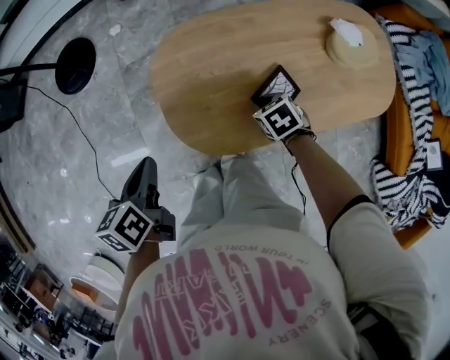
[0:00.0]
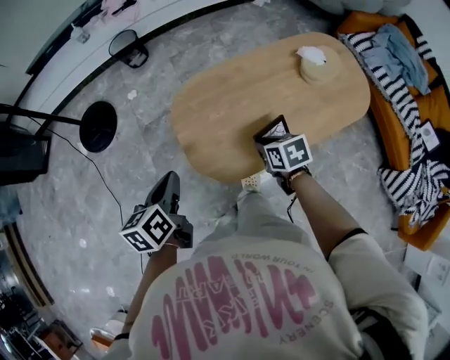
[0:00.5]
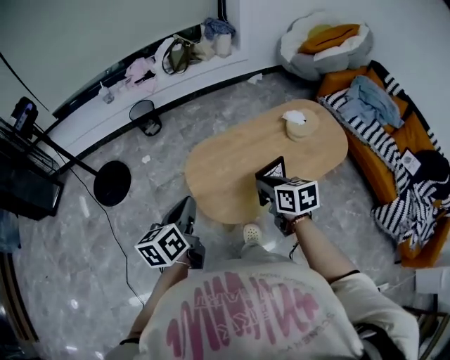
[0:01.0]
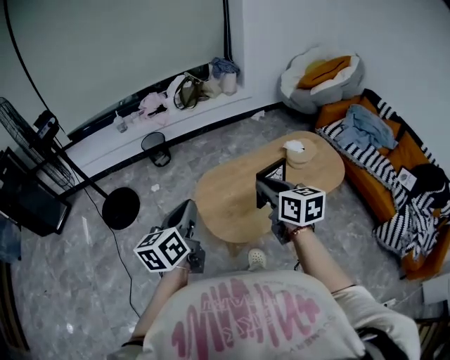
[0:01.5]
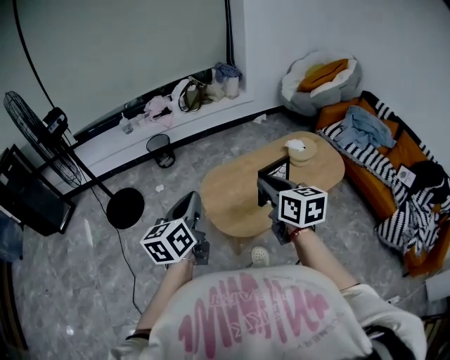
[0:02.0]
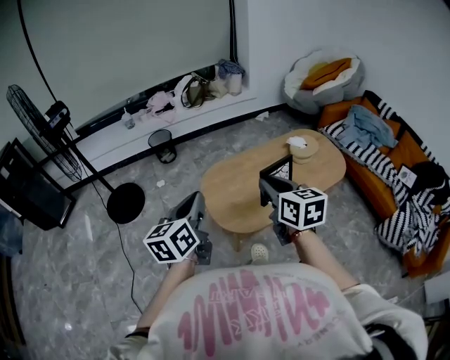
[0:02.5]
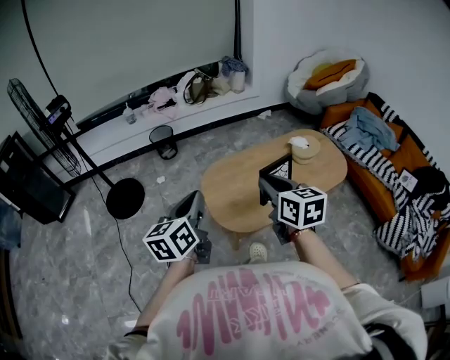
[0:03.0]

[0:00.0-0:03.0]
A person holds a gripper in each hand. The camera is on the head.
0:00.0 to 0:01.5: The right gripper shifts about 40 cm upward, and tips its fingers upward by approximately 50 degrees. The left gripper moves upward, roughly 25 cm, and tips its fingers upward by about 30 degrees.
0:01.5 to 0:03.0: The right gripper goes about 5 cm backward.

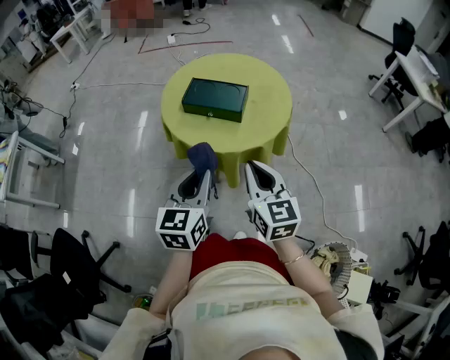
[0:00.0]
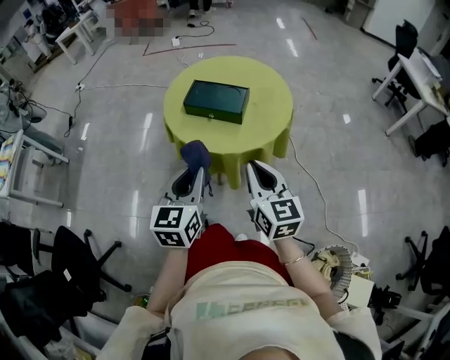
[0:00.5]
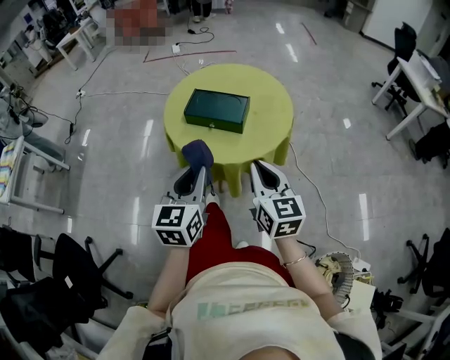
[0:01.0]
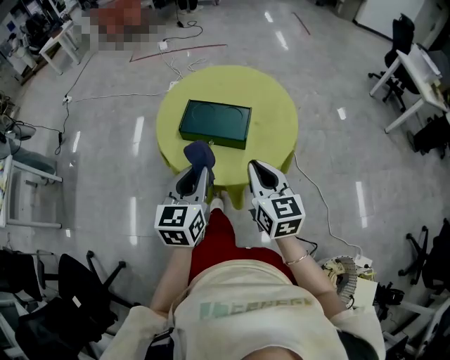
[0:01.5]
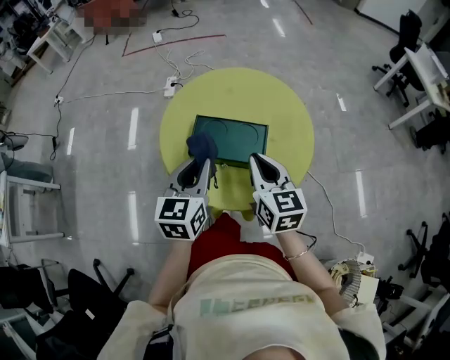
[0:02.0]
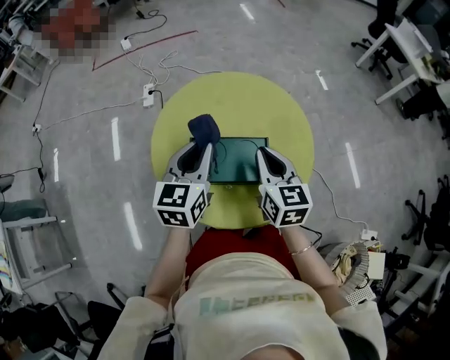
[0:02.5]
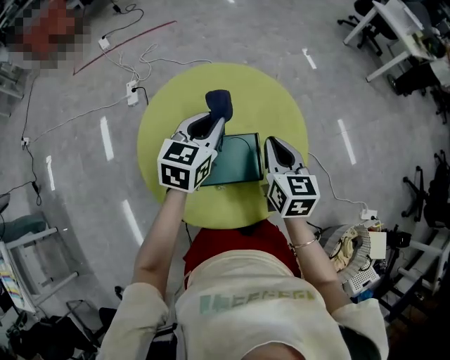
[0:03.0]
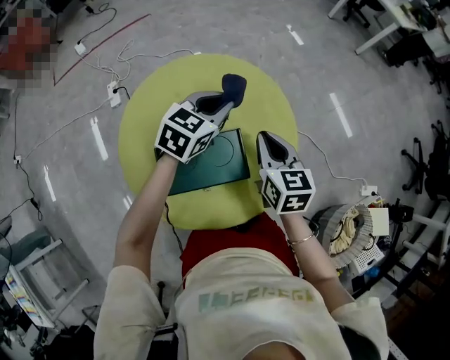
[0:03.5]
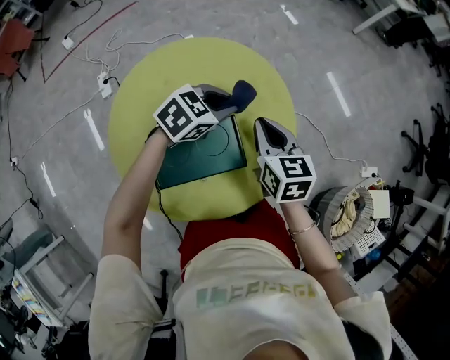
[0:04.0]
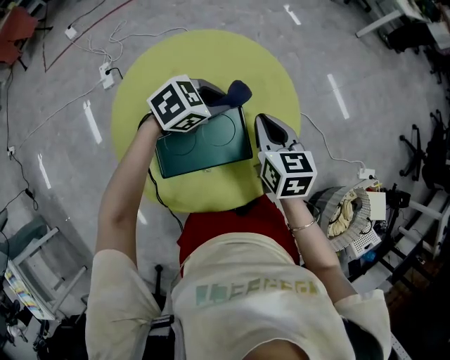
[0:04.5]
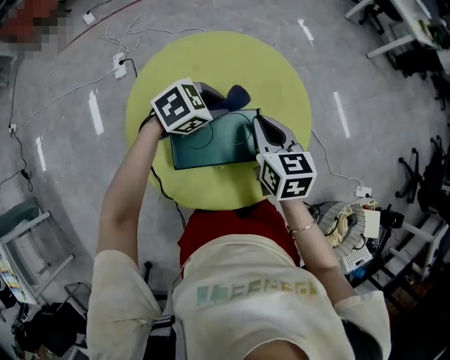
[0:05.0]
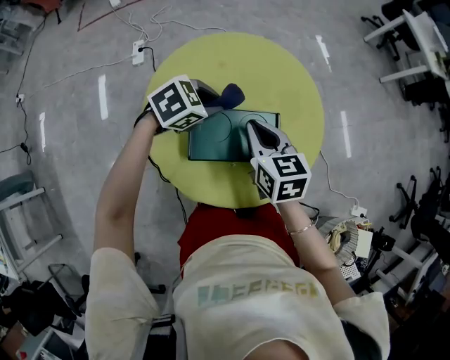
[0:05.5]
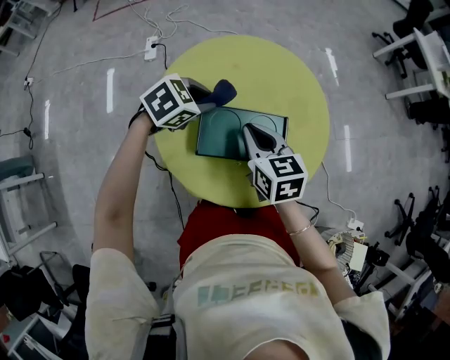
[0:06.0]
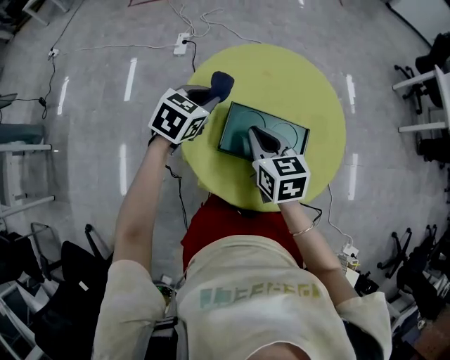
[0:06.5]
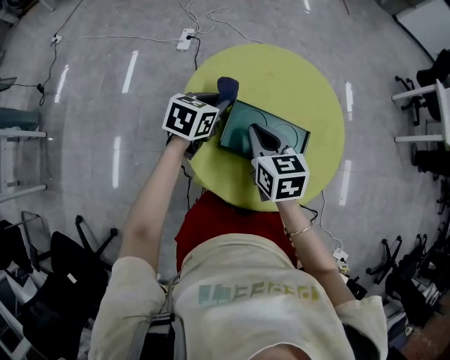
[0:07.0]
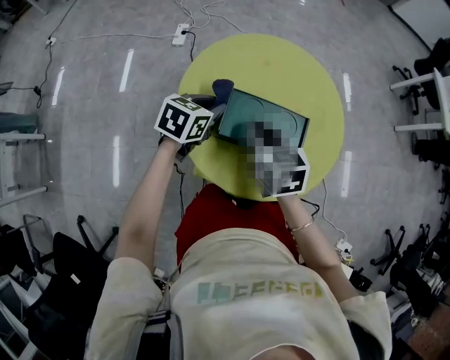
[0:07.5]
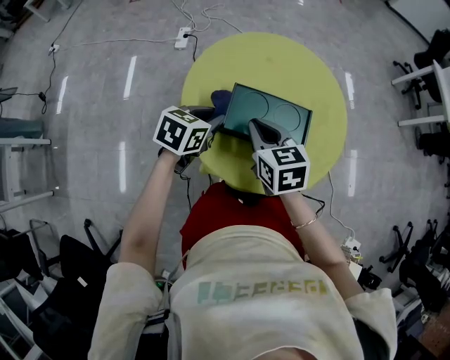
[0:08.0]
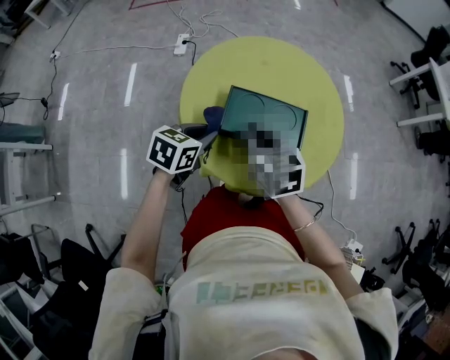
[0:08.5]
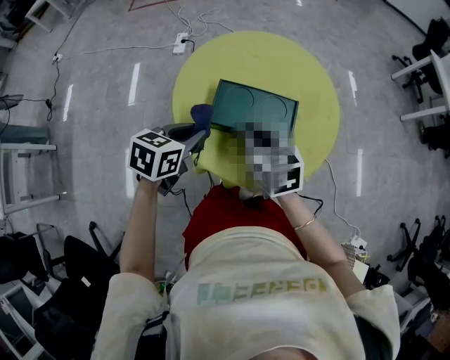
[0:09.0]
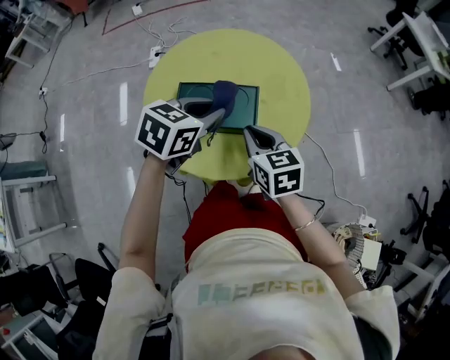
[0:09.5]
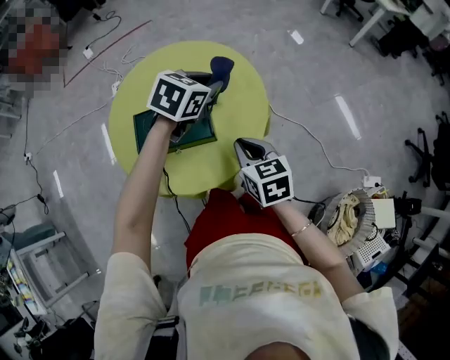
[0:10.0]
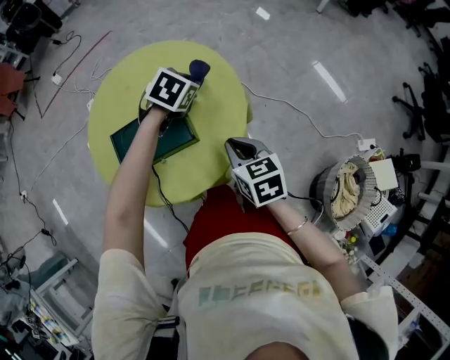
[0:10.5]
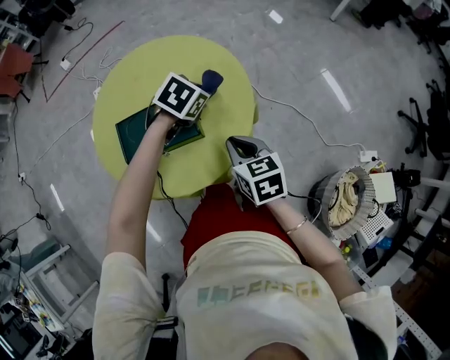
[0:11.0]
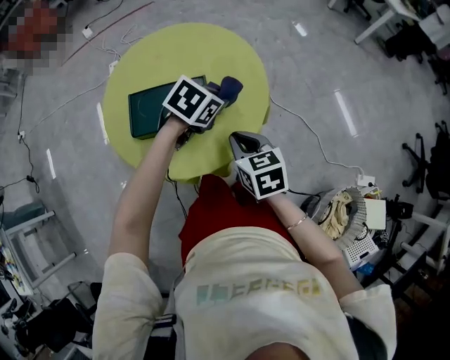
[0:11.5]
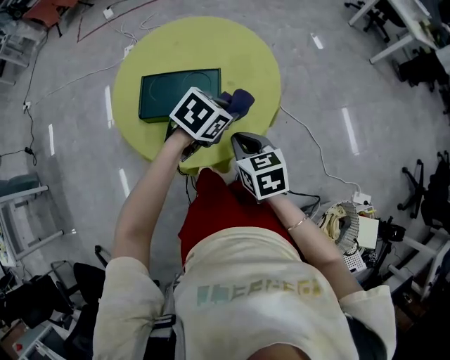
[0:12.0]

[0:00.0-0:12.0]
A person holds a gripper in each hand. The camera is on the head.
0:00.0 to 0:02.0: The grippers both shift forward by some 30 cm.
0:02.0 to 0:04.0: The left gripper shifts by some 30 cm, and changes its angle by about 80 degrees, while the right gripper moves some 20 cm, and swivels some 30 degrees.
0:04.0 to 0:06.0: The left gripper shifts by about 20 cm. Meanwhile the right gripper shifts by approximately 20 cm, and changes its angle by about 30 degrees.
0:06.0 to 0:08.0: The left gripper is displaced backward by about 10 cm, and turns by some 40 degrees. Meanwhile the right gripper goes about 10 cm backward and to the left.
0:08.0 to 0:10.0: The two grippers go roughly 25 cm to the right. The right gripper rotates approximately 20 degrees. The left gripper swivels approximately 30 degrees.
0:10.0 to 0:12.0: The left gripper heads backward and downward, covering some 15 cm.

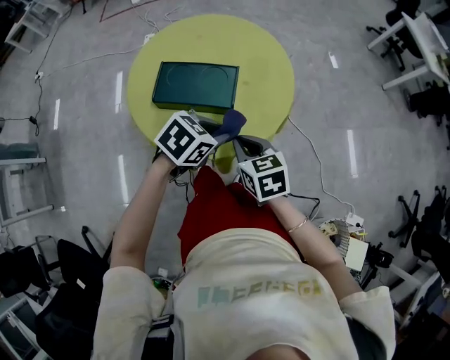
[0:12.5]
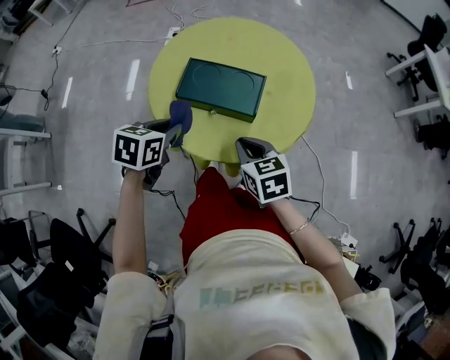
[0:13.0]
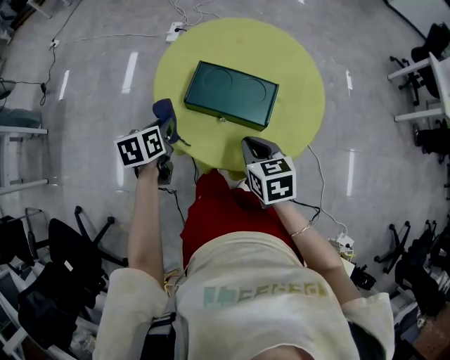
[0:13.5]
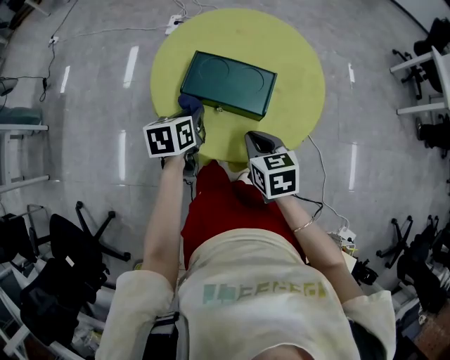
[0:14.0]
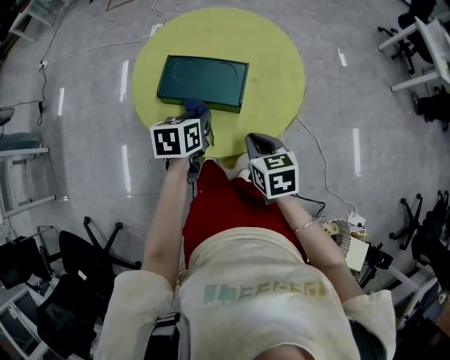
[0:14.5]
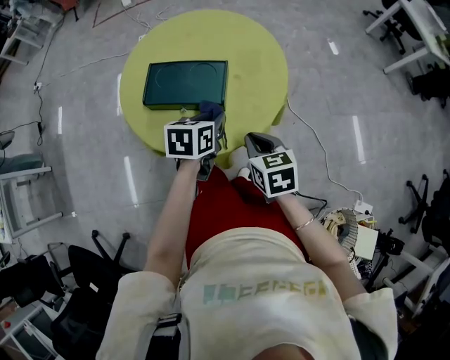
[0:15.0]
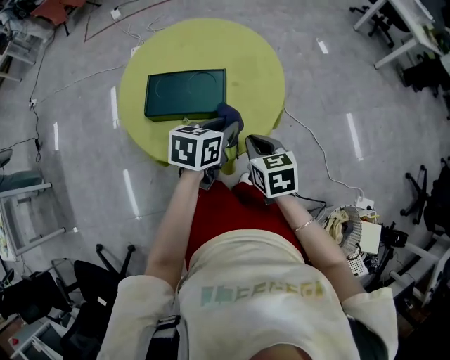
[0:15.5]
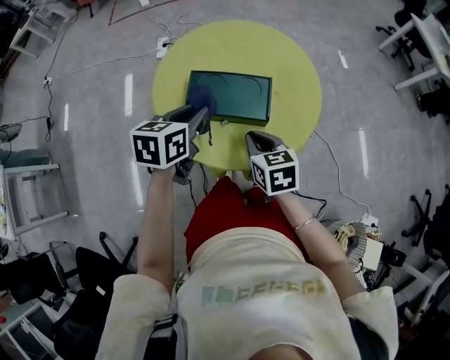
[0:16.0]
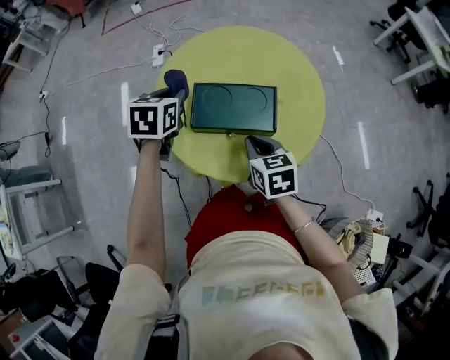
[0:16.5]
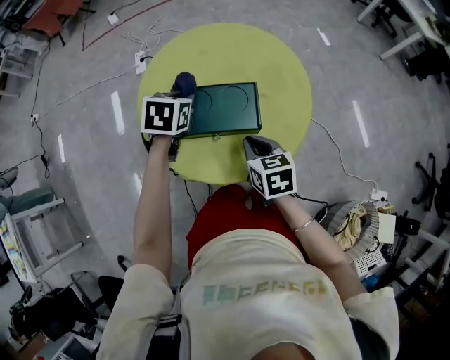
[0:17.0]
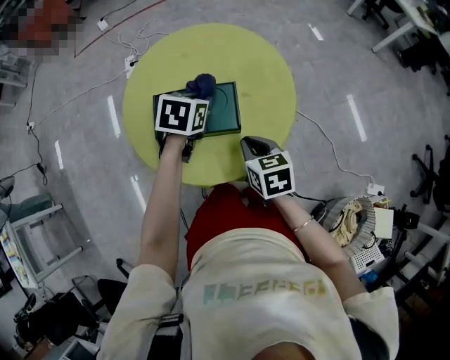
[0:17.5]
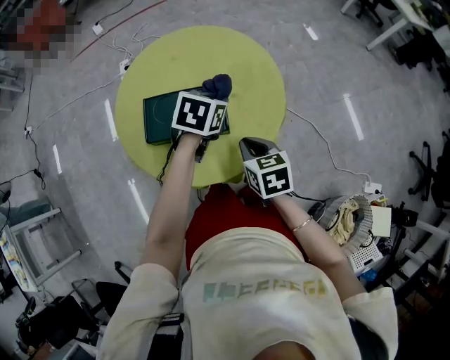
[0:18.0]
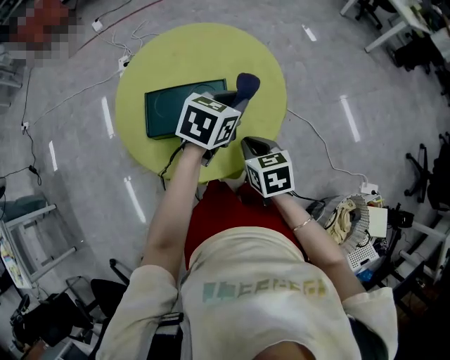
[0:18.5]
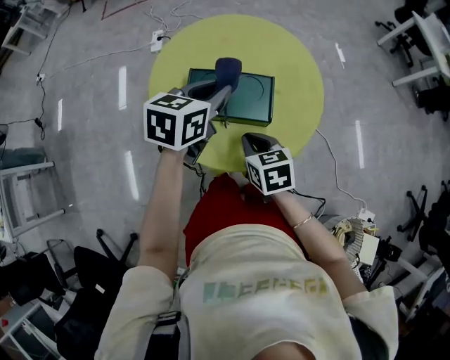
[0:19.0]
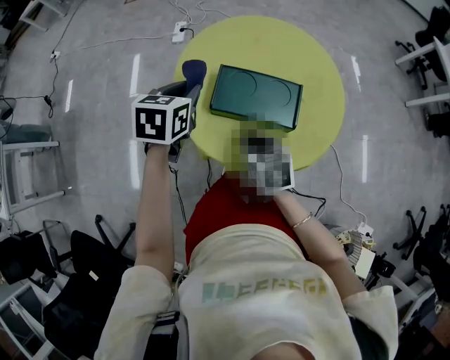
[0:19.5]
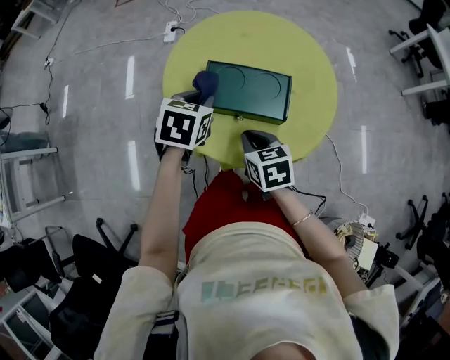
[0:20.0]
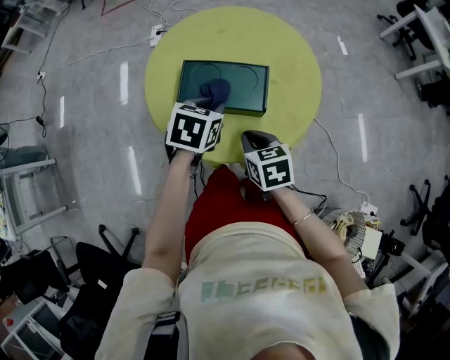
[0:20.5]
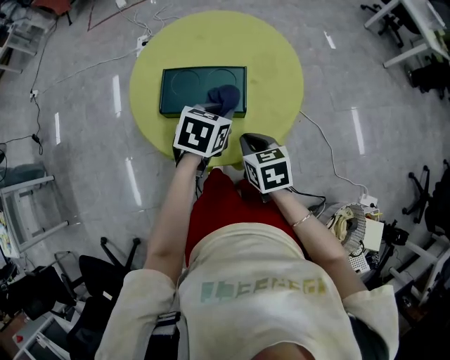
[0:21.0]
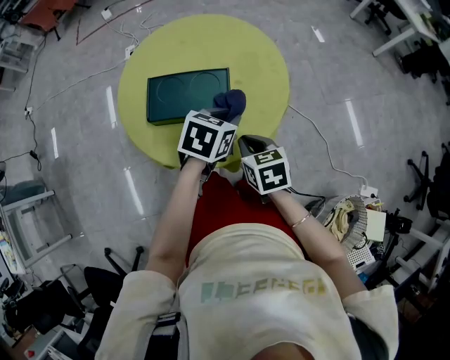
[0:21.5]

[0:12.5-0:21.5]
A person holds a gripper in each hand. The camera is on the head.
0:12.5 to 0:14.5: The left gripper turns by roughly 50 degrees.
0:14.5 to 0:17.0: The left gripper moves left and right over about 30 cm, changing direction 2 times, and turns by approximately 30 degrees, while the right gripper swings left and right, roughly 15 cm each way, with 2 reversals.
0:17.0 to 0:19.5: The right gripper ends up approximately 10 cm from where it was.
0:19.5 to 0:21.5: The left gripper heads to the right, covering some 30 cm, and changes its angle by roughly 30 degrees, while the right gripper heads to the right, covering approximately 15 cm.

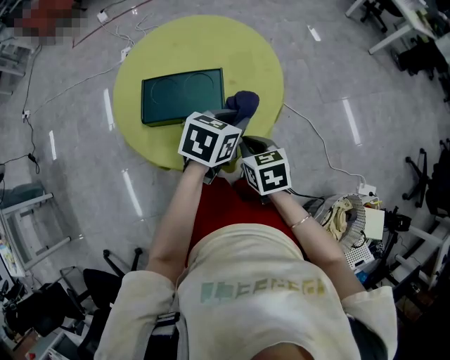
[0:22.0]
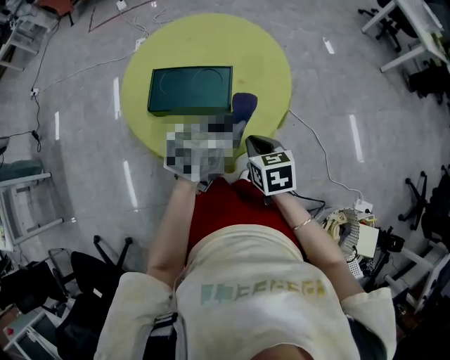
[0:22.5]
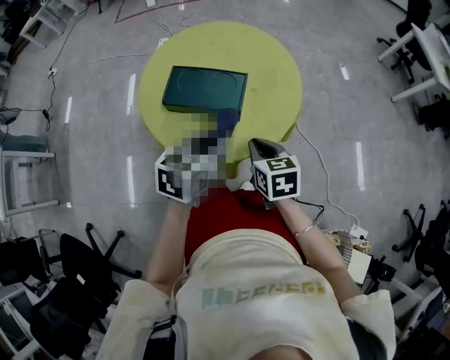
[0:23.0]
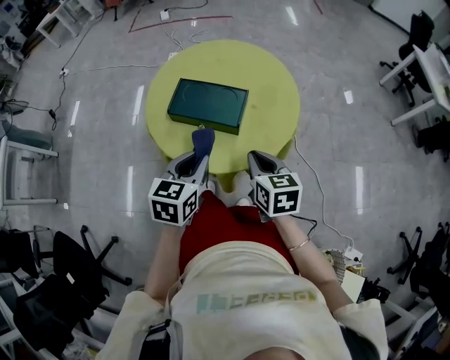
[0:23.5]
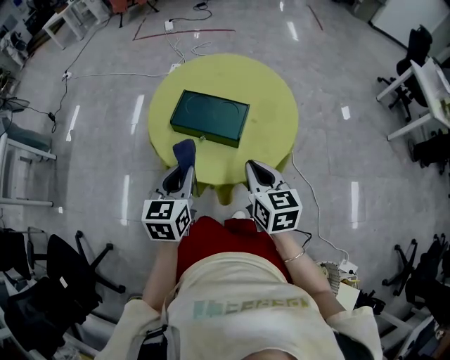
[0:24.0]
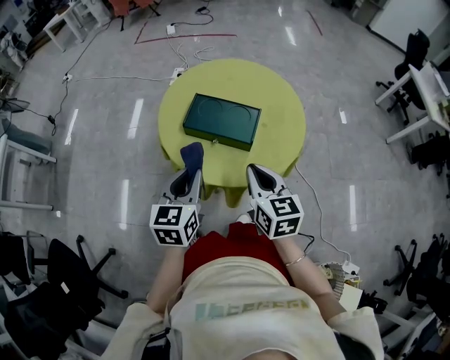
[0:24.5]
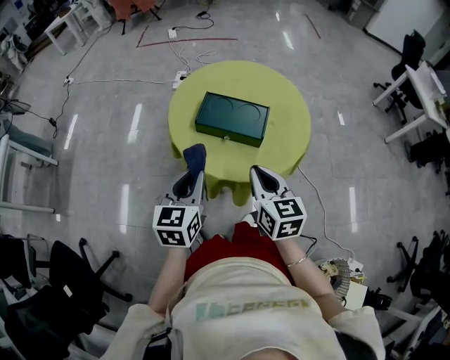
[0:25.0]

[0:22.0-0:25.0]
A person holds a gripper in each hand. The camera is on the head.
0:22.0 to 0:23.5: The left gripper ends up about 15 cm from where it was, and turns by roughly 40 degrees; the right gripper is displaced upward by some 5 cm.
0:23.5 to 0:25.0: The right gripper heads to the left and upward, covering approximately 10 cm. Meanwhile the left gripper heads to the left, covering roughly 15 cm.
